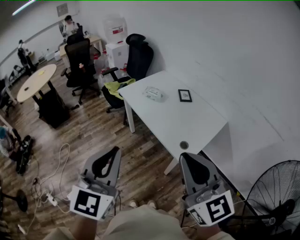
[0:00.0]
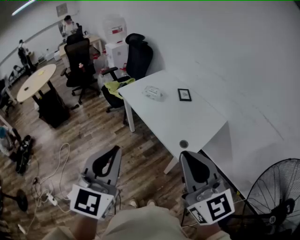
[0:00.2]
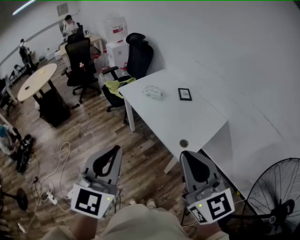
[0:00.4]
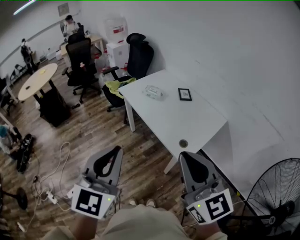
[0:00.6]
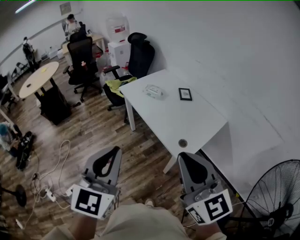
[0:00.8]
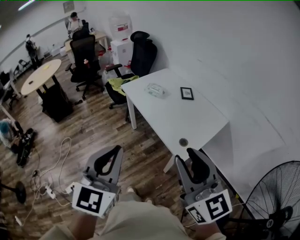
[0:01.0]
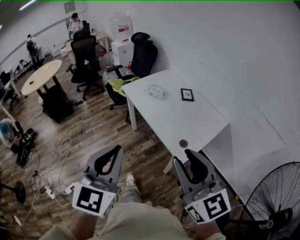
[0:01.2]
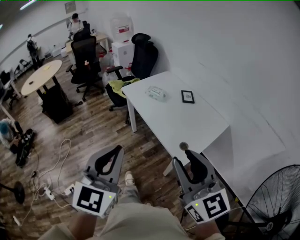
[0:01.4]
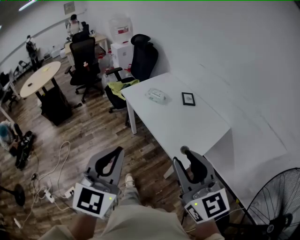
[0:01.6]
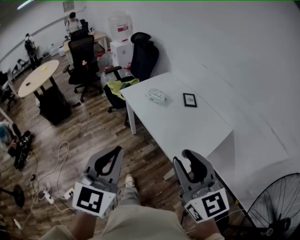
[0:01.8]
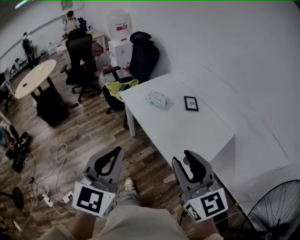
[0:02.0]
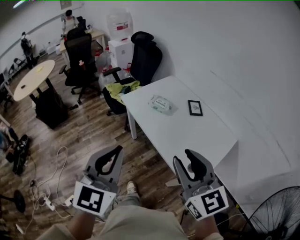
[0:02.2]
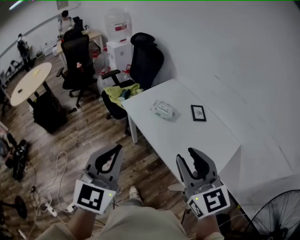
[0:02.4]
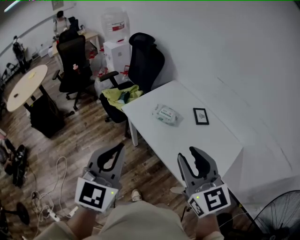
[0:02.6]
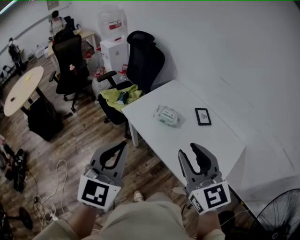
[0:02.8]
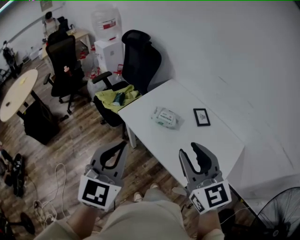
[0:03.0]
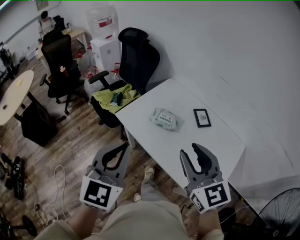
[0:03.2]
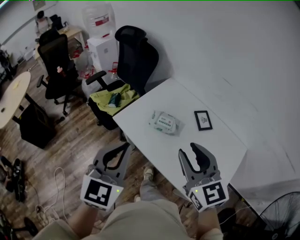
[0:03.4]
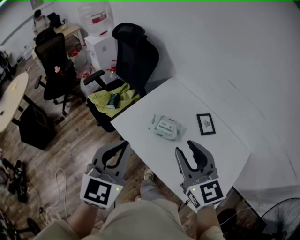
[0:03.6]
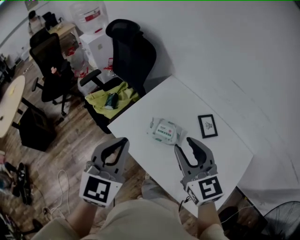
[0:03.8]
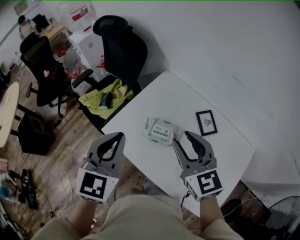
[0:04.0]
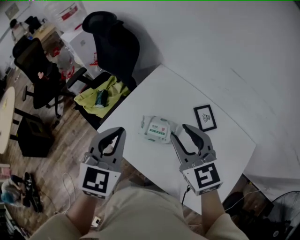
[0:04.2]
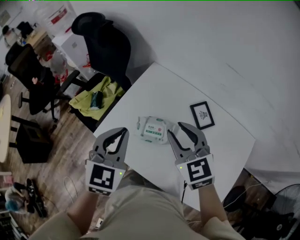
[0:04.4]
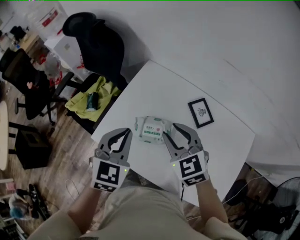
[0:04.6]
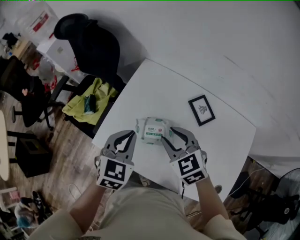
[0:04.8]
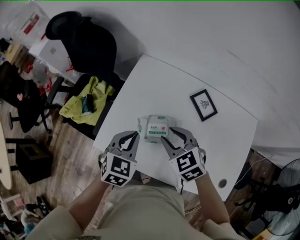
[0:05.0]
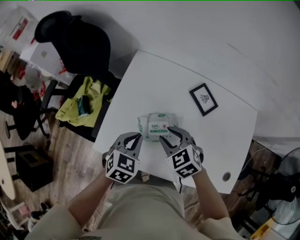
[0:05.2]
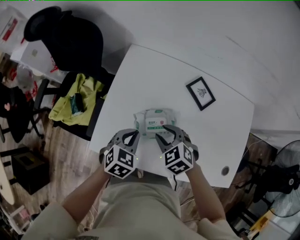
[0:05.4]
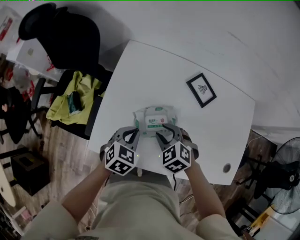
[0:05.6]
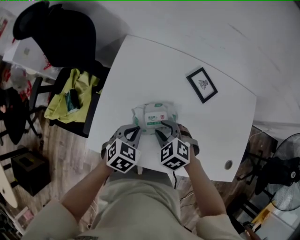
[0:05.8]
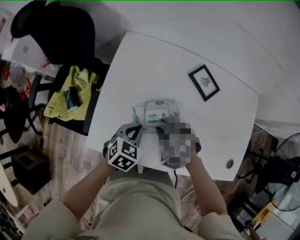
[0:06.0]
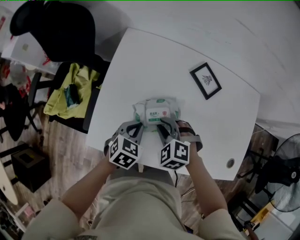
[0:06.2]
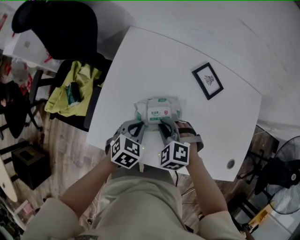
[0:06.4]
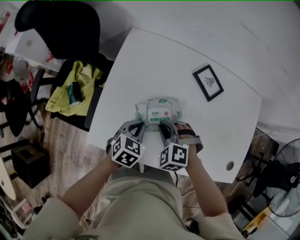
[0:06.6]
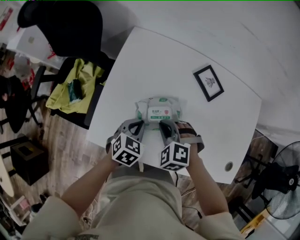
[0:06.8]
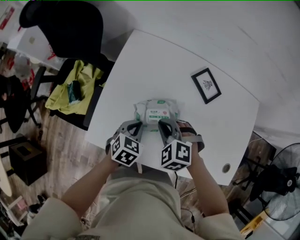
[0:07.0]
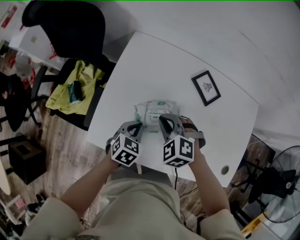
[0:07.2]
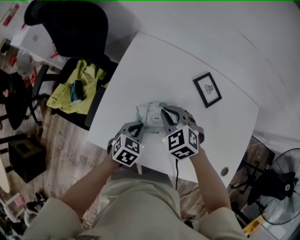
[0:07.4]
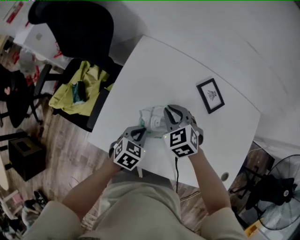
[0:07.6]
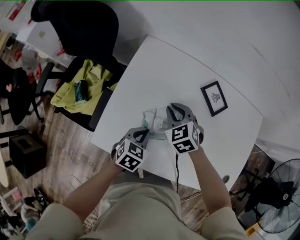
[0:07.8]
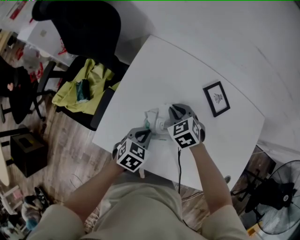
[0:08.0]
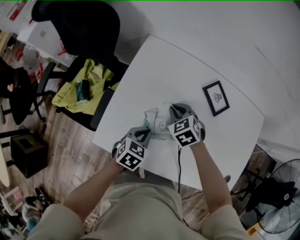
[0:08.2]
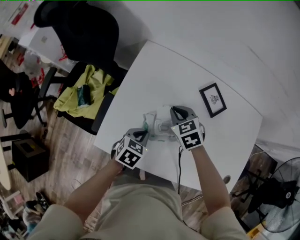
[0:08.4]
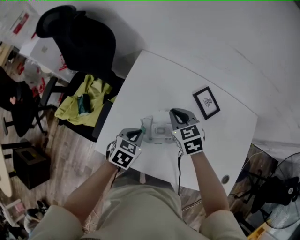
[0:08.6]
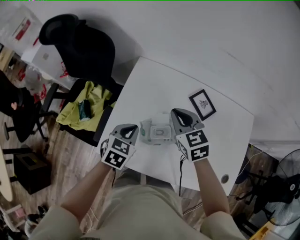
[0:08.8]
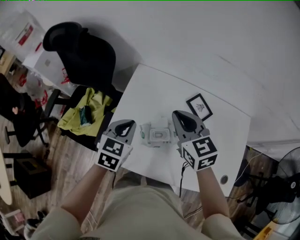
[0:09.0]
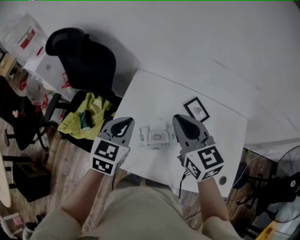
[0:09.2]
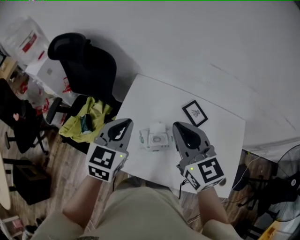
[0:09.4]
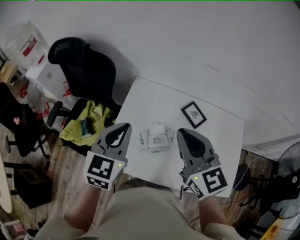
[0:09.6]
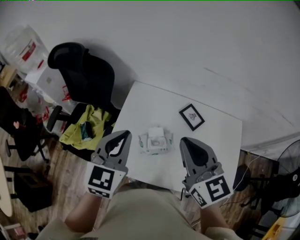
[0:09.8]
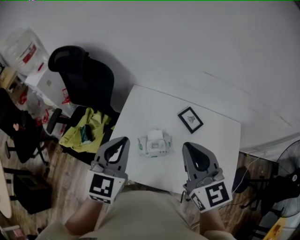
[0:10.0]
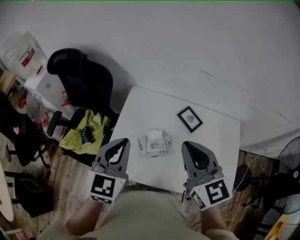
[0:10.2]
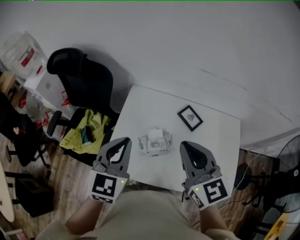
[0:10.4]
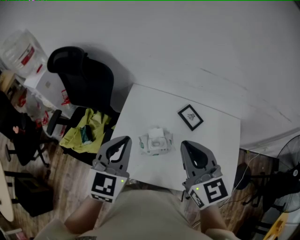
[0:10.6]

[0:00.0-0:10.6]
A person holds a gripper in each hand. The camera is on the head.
0:00.0 to 0:01.6: The right gripper ends up approximately 5 cm from where it was, and opens up.
0:01.6 to 0:03.0: Both grippers move forward, some 40 cm.
0:03.0 to 0:04.6: The grippers both shift forward and downward by some 40 cm. The left gripper turns by approximately 30 degrees. The right gripper changes its angle by some 30 degrees.
0:04.6 to 0:06.0: Both grippers travel together downward, some 25 cm. The right gripper changes its angle by about 30 degrees. Meanwhile the left gripper changes its angle by roughly 40 degrees.
0:06.0 to 0:07.6: The right gripper travels forward by approximately 10 cm, and closes up.
0:07.6 to 0:09.0: Both grippers travel together upward, some 20 cm. The right gripper rotates approximately 30 degrees.
0:09.0 to 0:10.6: The two grippers go approximately 15 cm upward and backward. The left gripper changes its angle by some 20 degrees.

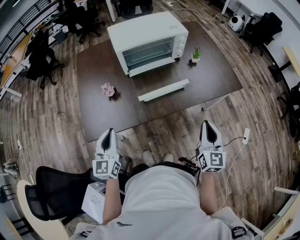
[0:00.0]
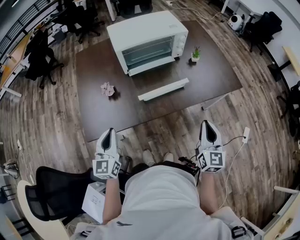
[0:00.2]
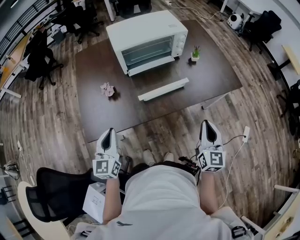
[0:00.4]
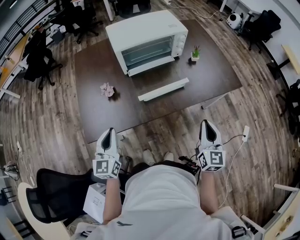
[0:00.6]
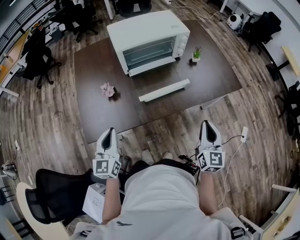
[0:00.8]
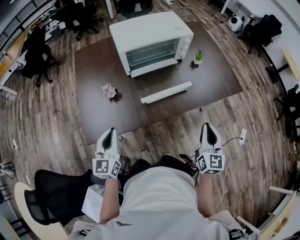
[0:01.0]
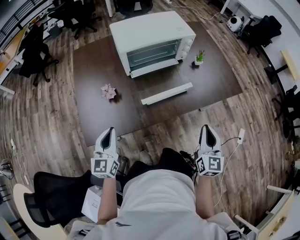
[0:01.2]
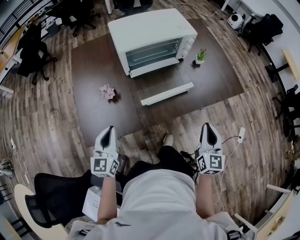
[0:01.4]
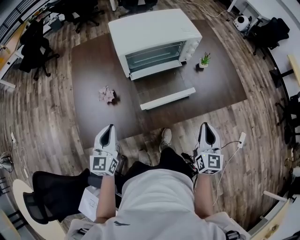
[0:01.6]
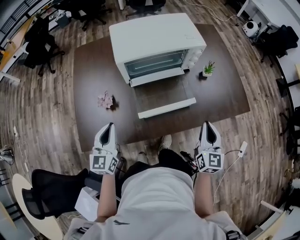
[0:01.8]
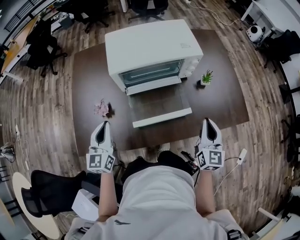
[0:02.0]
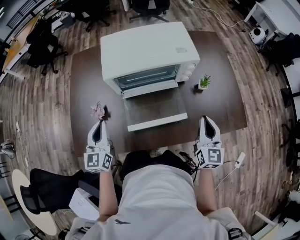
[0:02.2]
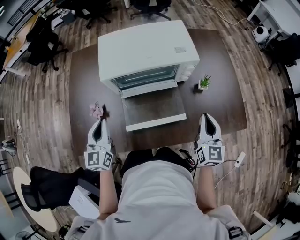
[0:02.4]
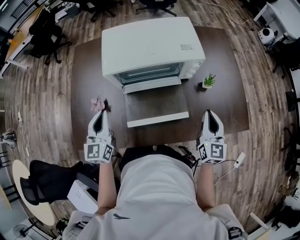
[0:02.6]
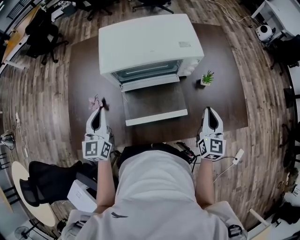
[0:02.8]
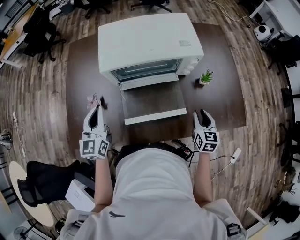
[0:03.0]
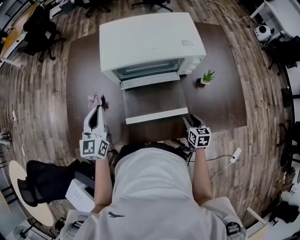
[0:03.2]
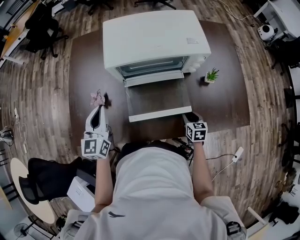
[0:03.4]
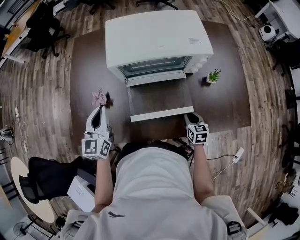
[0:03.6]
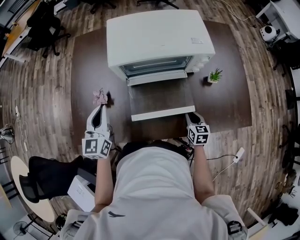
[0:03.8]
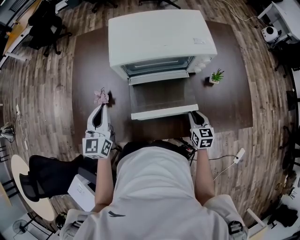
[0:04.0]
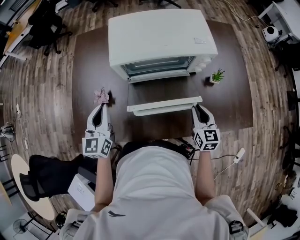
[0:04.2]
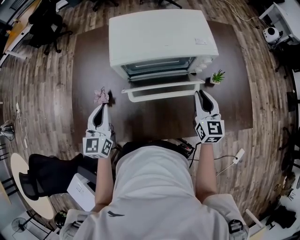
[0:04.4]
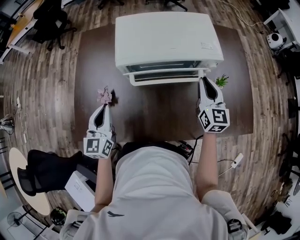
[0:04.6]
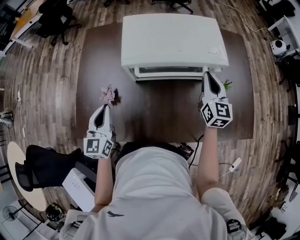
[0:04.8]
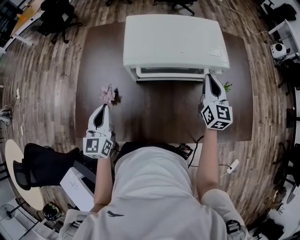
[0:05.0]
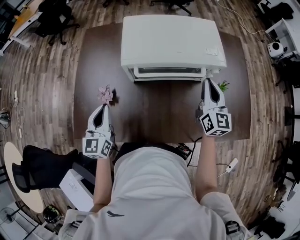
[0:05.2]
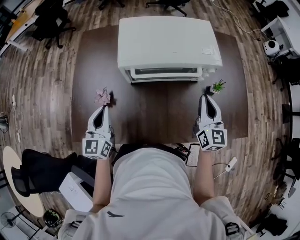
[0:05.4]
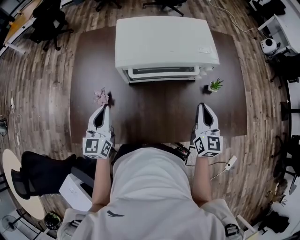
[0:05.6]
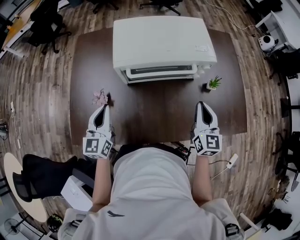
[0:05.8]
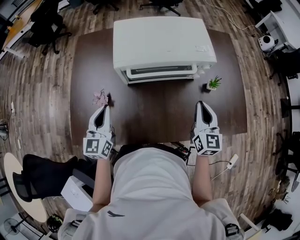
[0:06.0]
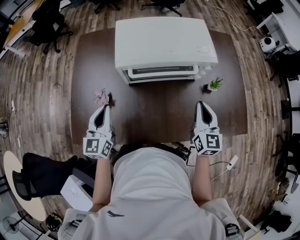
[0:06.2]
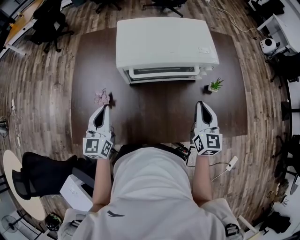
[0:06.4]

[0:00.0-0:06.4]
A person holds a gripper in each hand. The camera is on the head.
0:00.0 to 0:01.6: Both grippers travel together forward, approximately 10 cm.
0:01.6 to 0:03.2: The left gripper shifts about 15 cm forward. Meanwhile the right gripper shifts about 25 cm downward and forward, tips its fingers downward by some 30 degrees, and opens.
0:03.2 to 0:04.8: The right gripper moves upward and forward, roughly 30 cm, tips its fingers upward by about 40 degrees, and closes its fingers.
0:04.8 to 0:06.4: The right gripper travels backward by about 10 cm.

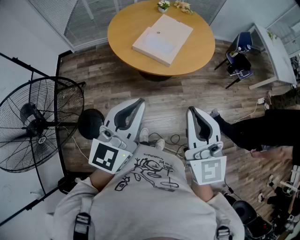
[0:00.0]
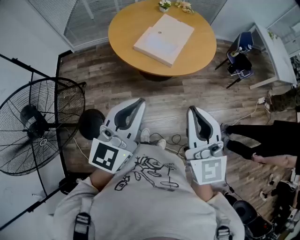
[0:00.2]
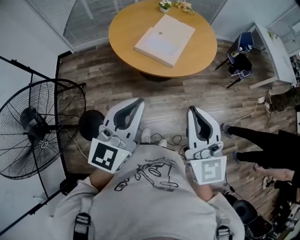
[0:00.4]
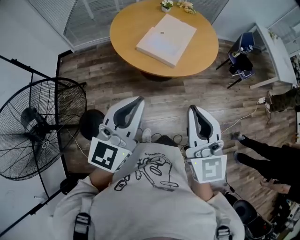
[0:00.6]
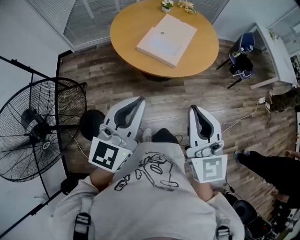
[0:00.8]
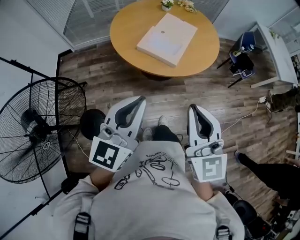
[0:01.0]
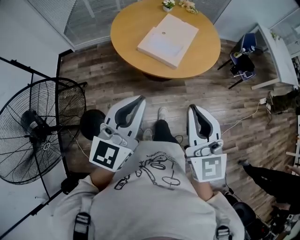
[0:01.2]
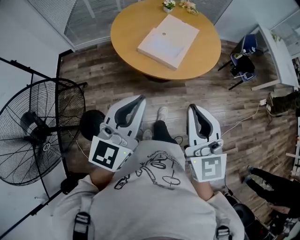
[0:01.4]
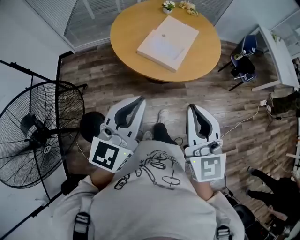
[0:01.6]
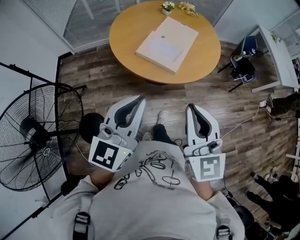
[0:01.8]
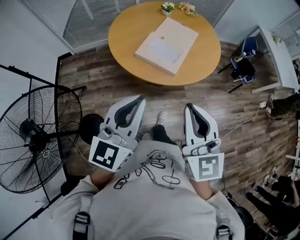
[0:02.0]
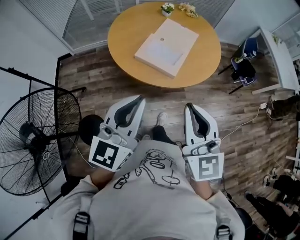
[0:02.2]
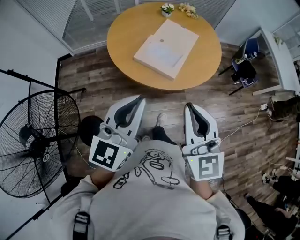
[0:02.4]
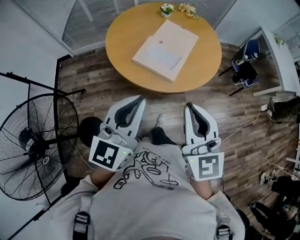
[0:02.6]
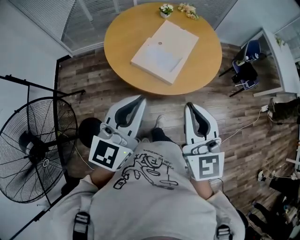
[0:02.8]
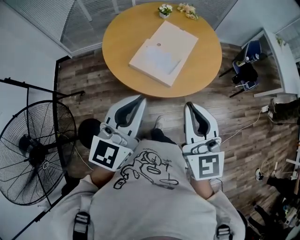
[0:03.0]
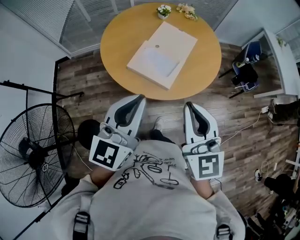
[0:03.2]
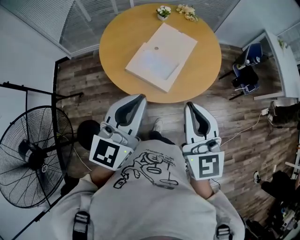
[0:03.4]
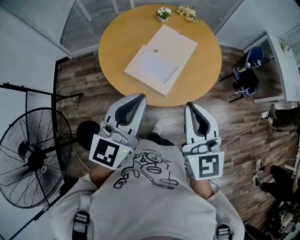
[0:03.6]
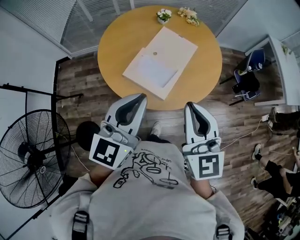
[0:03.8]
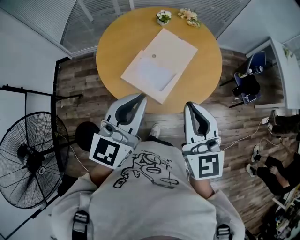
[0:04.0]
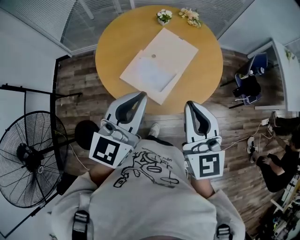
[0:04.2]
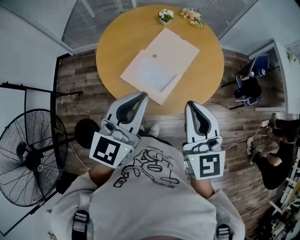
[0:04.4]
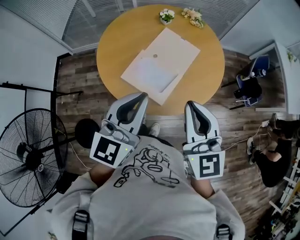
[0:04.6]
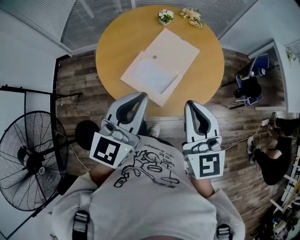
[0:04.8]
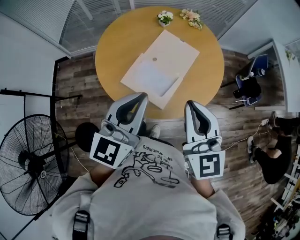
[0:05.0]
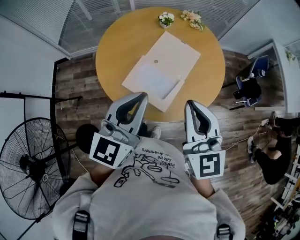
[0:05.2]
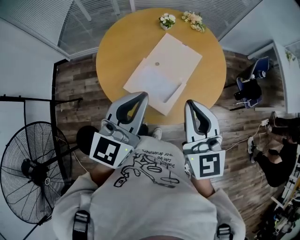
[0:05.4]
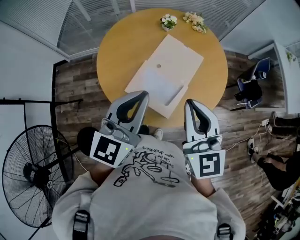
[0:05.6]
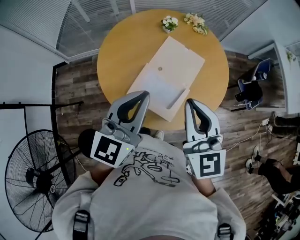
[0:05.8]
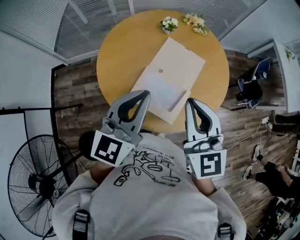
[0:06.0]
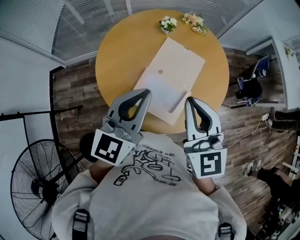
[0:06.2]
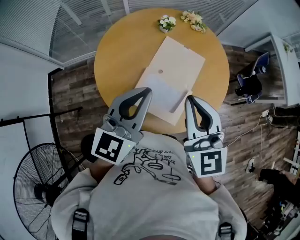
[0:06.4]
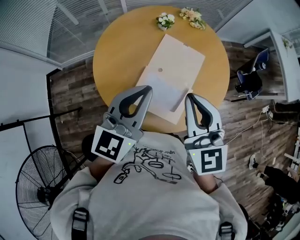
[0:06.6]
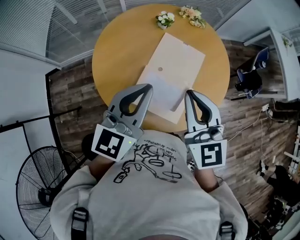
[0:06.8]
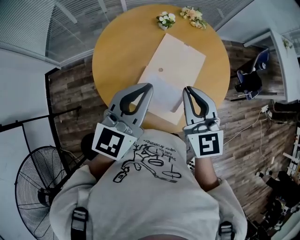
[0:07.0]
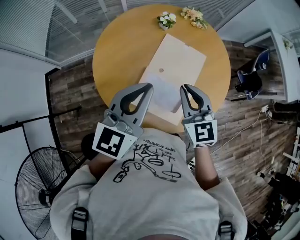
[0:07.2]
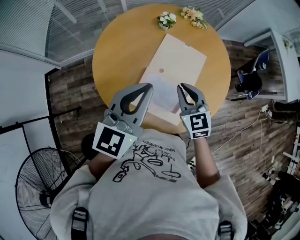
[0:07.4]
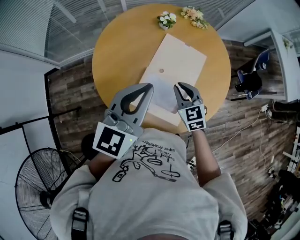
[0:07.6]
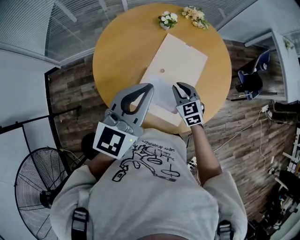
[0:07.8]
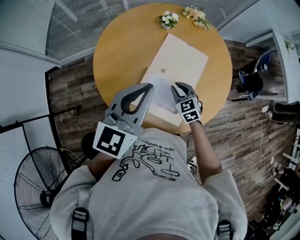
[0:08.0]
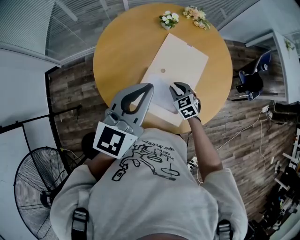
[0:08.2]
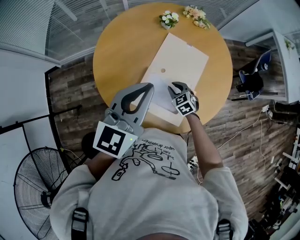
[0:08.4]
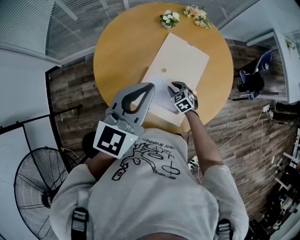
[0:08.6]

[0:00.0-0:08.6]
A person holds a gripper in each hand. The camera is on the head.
0:00.0 to 0:01.4: Both grippers move forward and to the left, roughly 10 cm.
0:01.4 to 0:02.8: The two grippers go about 15 cm forward.
0:02.8 to 0:04.4: The two grippers go about 20 cm forward and to the right.
0:04.4 to 0:05.8: Both grippers travel together forward and to the left, about 15 cm.
0:05.8 to 0:07.2: The right gripper moves downward and forward, roughly 20 cm. Meanwhile the left gripper moves forward, approximately 10 cm.
0:07.2 to 0:08.6: The right gripper shifts about 30 cm downward, and points its fingers about 40 degrees further downward.
